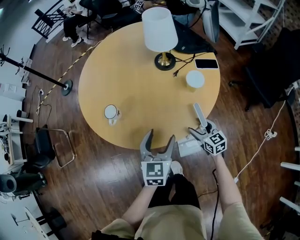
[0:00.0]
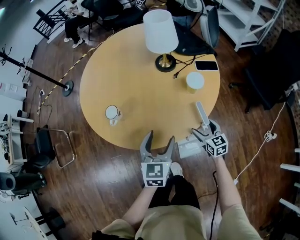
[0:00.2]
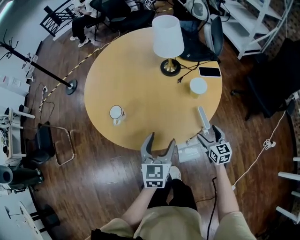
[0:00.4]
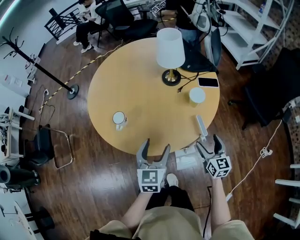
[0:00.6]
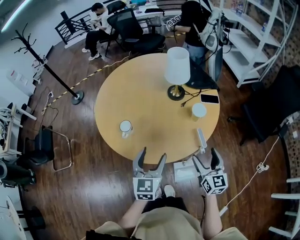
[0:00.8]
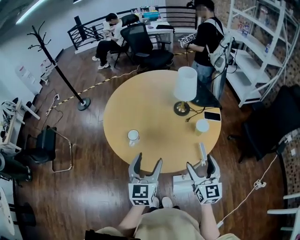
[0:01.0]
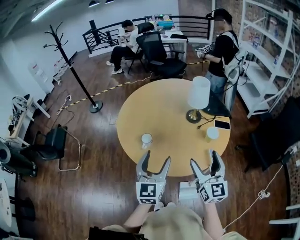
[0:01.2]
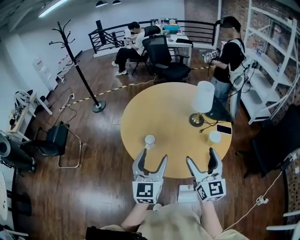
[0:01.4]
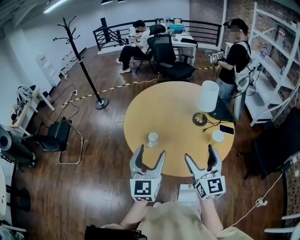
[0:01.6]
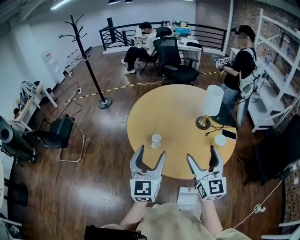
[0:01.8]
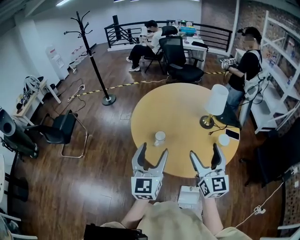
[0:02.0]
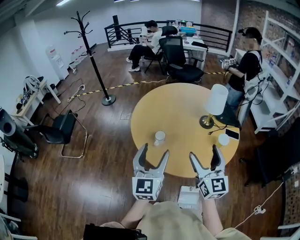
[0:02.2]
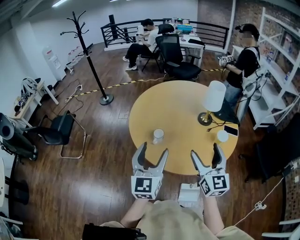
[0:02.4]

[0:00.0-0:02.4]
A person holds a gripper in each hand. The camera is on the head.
0:00.0 to 0:01.2: The right gripper shifts some 35 cm upward, and turns by some 30 degrees. The left gripper shifts about 20 cm upward and to the left, and changes its angle by some 30 degrees.
0:01.2 to 0:02.4: Both grippers travel together to the left, about 10 cm.

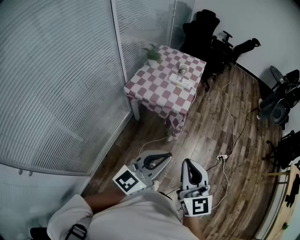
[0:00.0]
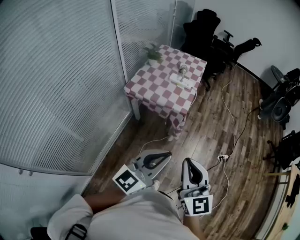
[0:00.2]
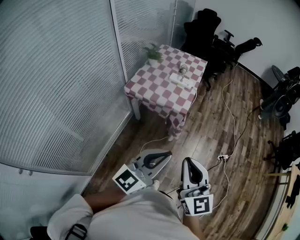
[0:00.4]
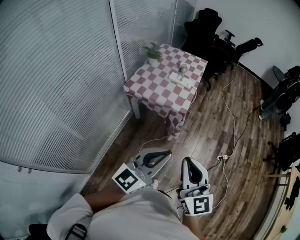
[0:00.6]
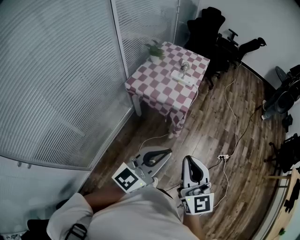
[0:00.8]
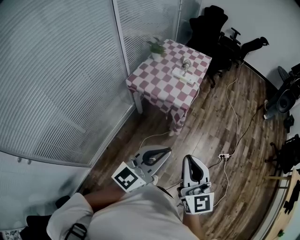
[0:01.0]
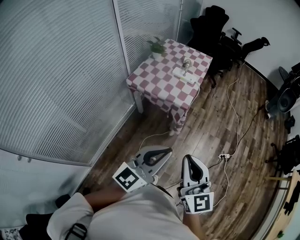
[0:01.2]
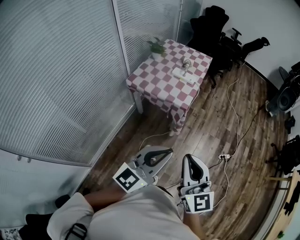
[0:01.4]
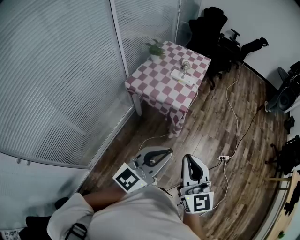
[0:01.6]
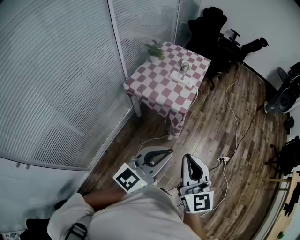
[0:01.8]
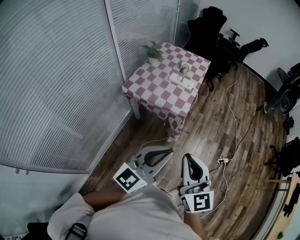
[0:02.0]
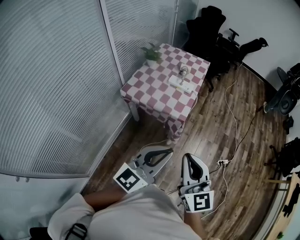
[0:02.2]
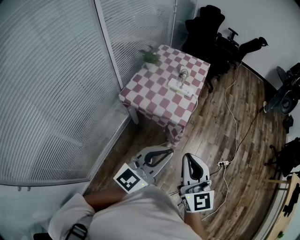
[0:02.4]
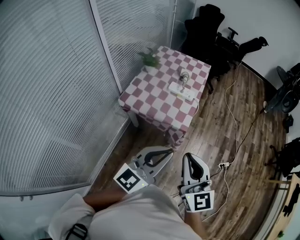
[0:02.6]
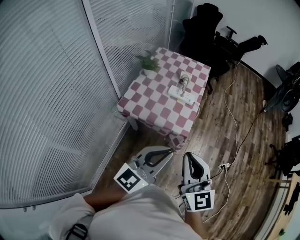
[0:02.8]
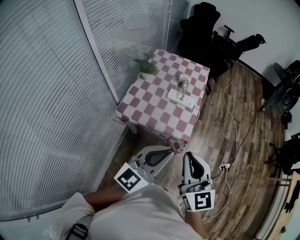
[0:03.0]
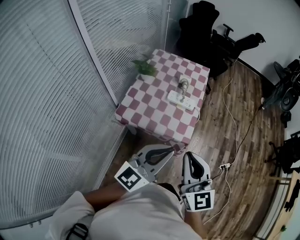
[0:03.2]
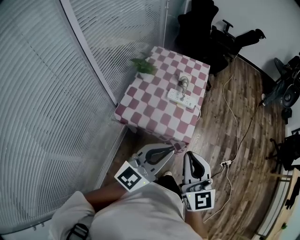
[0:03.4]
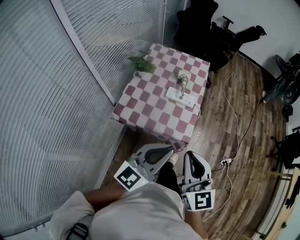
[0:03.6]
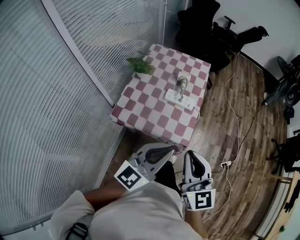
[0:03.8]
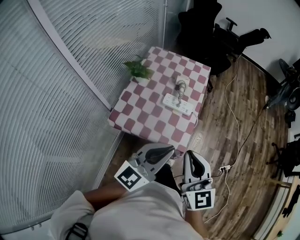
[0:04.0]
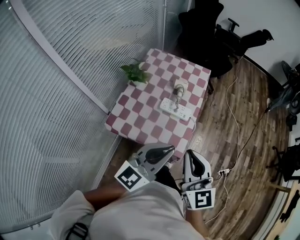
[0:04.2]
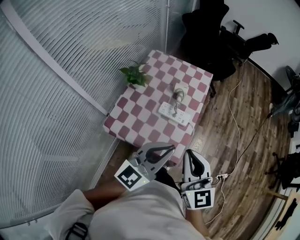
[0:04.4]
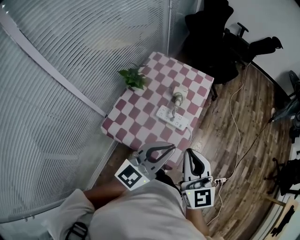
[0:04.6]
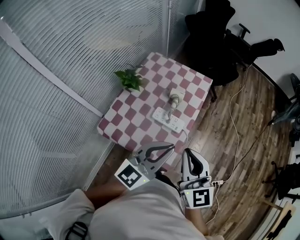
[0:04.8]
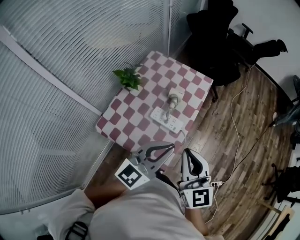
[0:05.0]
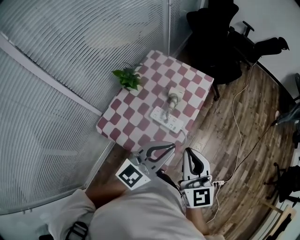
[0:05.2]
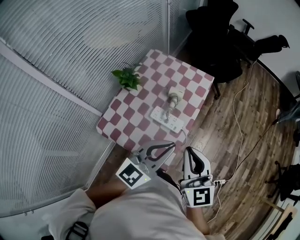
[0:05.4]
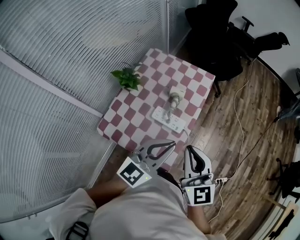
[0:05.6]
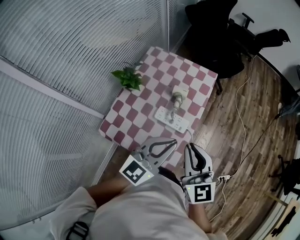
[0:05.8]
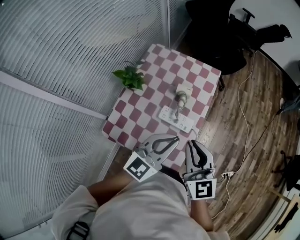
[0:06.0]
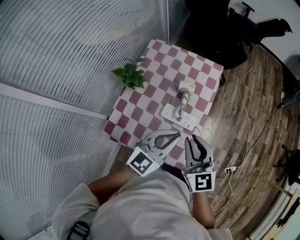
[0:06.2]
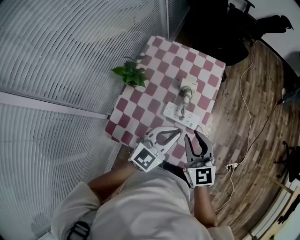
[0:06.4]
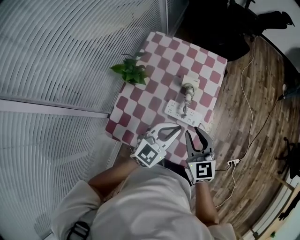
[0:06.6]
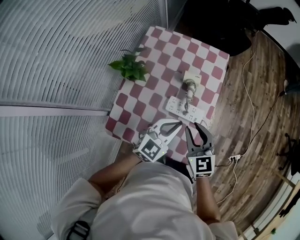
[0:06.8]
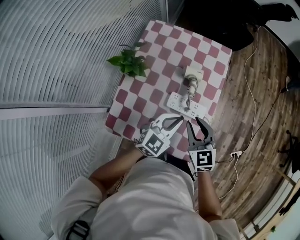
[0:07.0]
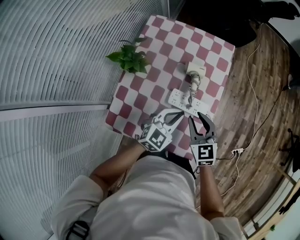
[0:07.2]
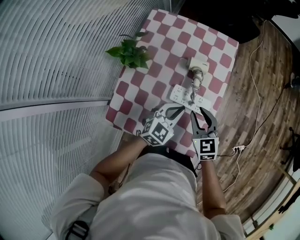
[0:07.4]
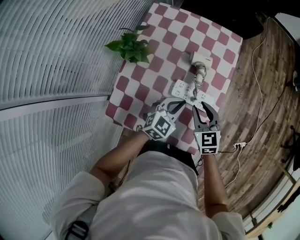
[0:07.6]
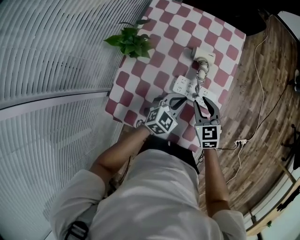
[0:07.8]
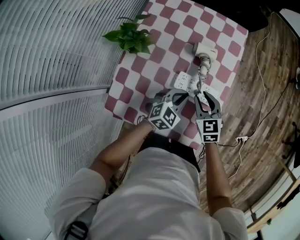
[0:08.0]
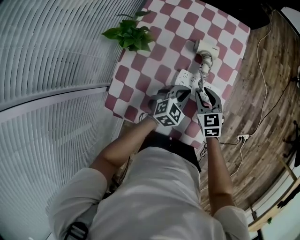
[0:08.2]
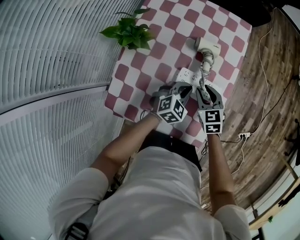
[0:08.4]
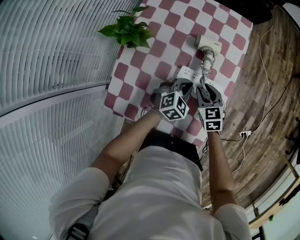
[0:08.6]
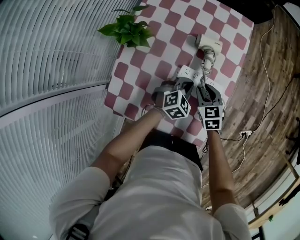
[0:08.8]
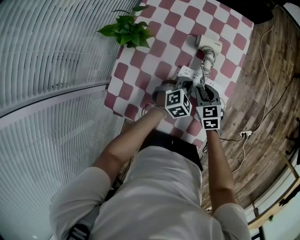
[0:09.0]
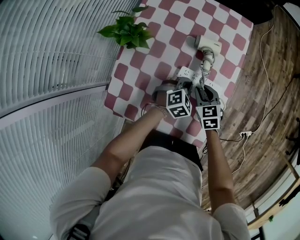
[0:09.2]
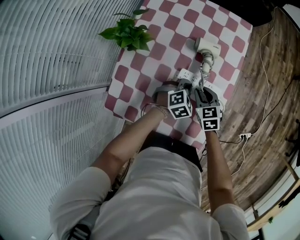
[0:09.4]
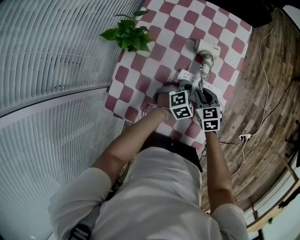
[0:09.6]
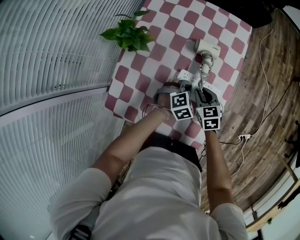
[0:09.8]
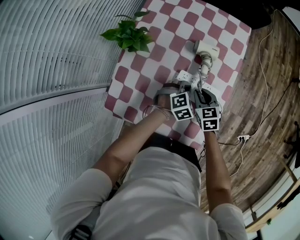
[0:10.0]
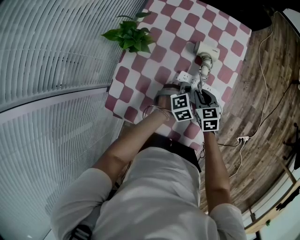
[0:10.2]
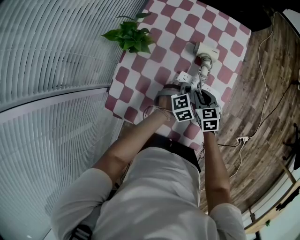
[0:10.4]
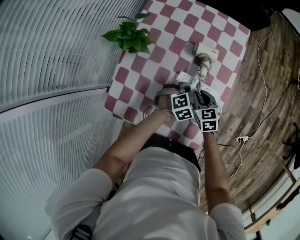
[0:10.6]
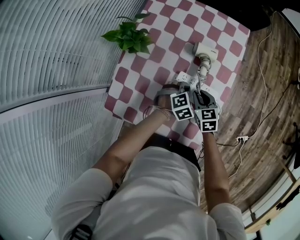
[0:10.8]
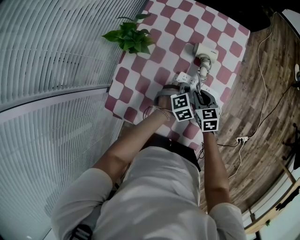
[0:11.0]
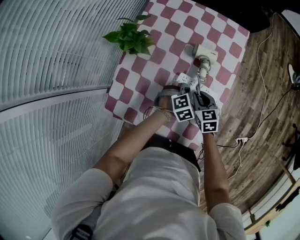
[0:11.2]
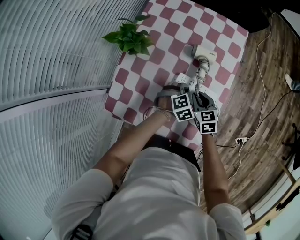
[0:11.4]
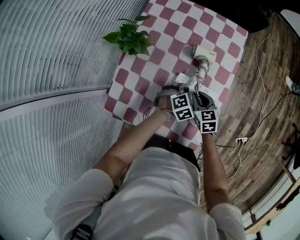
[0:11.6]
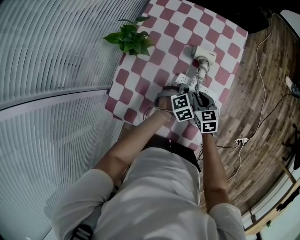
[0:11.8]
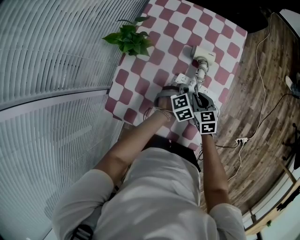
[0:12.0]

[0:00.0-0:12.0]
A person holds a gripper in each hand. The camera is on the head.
0:00.0 to 0:01.6: The right gripper shifts by some 5 cm. The left gripper changes place by approximately 5 cm.
0:01.6 to 0:03.0: Both grippers move forward and to the left, some 30 cm.
0:03.0 to 0:04.4: Both grippers move forward, roughly 25 cm.
0:04.4 to 0:06.0: The right gripper is displaced forward by roughly 15 cm. The left gripper is displaced forward and downward by about 15 cm.
0:06.0 to 0:07.6: Both grippers travel together downward, some 25 cm. The right gripper changes its angle by about 20 degrees, while the left gripper swivels approximately 20 degrees.
0:07.6 to 0:09.0: Both grippers move downward, approximately 10 cm. The left gripper changes its angle by some 20 degrees.
0:09.0 to 0:10.4: There are only small adjustments of the grippers.
0:10.4 to 0:12.0: Both grippers stay about where they are.

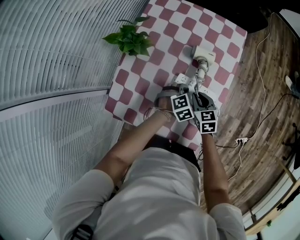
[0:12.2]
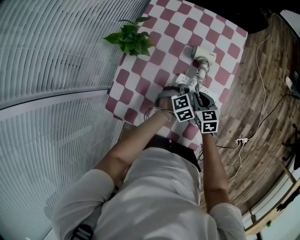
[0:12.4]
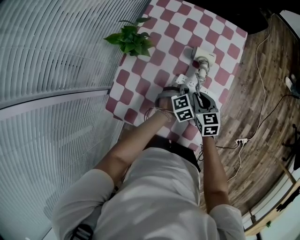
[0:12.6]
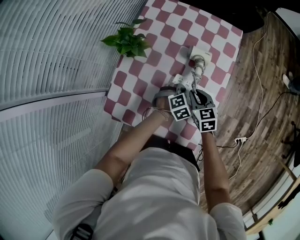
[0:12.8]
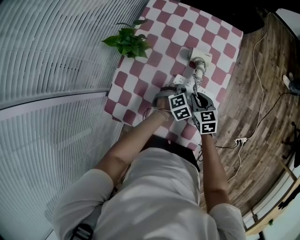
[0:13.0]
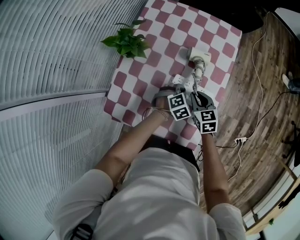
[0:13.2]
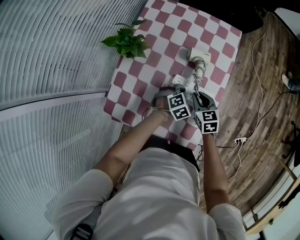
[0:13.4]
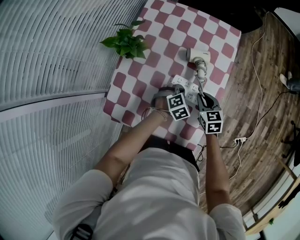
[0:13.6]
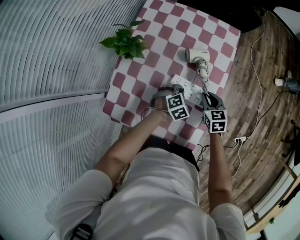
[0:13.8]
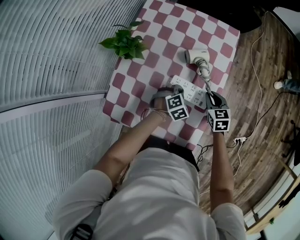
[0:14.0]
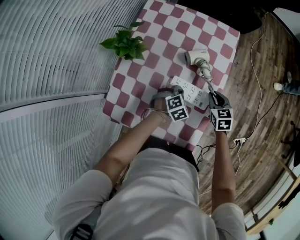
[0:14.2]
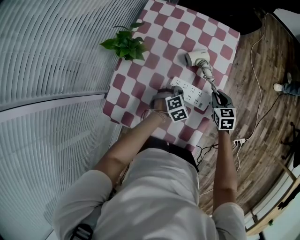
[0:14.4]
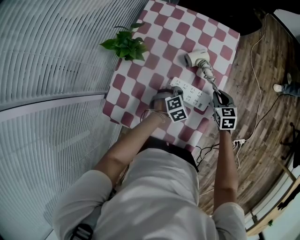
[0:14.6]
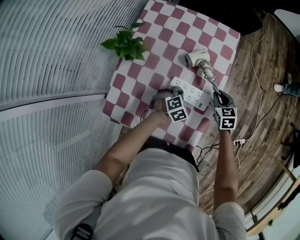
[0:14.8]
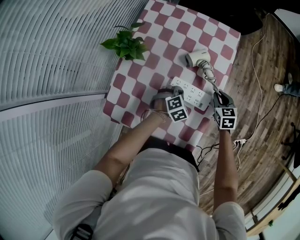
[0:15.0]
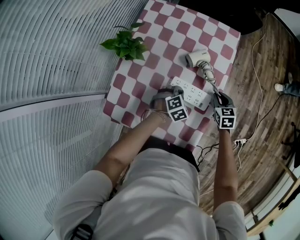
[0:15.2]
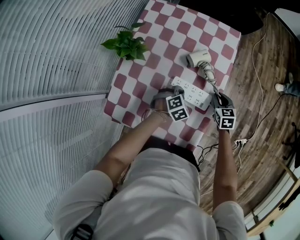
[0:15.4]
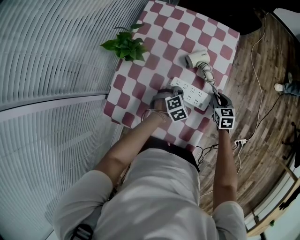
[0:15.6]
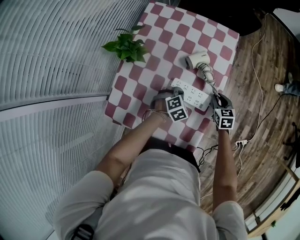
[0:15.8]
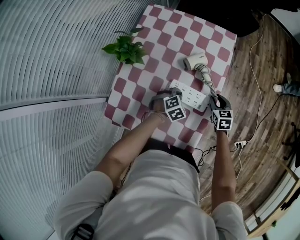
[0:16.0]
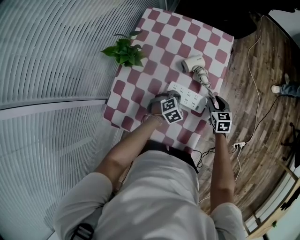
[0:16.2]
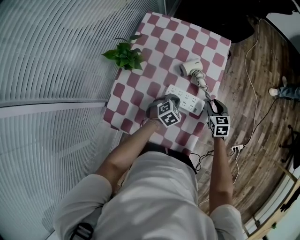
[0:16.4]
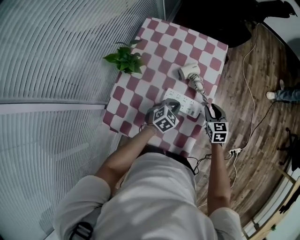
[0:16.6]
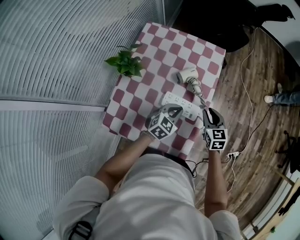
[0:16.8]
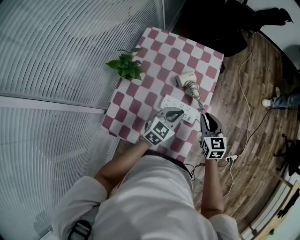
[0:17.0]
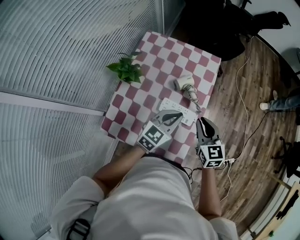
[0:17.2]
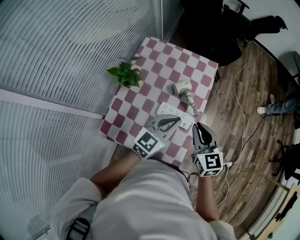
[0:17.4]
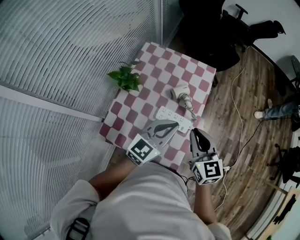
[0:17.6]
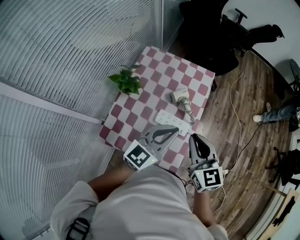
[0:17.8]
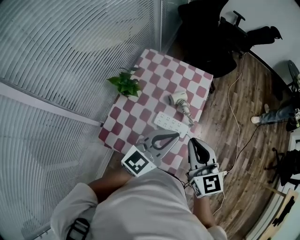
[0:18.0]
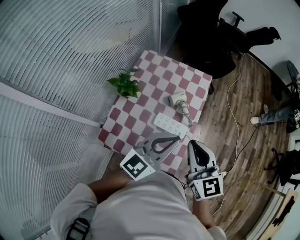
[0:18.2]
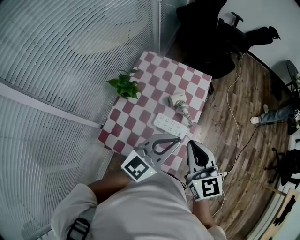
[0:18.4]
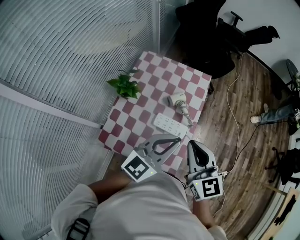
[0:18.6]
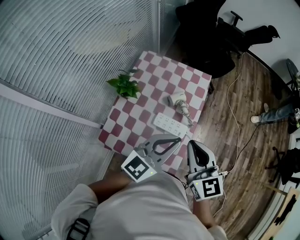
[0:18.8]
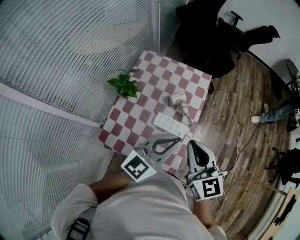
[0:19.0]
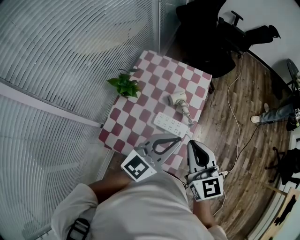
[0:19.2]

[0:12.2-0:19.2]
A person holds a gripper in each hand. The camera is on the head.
0:12.2 to 0:13.6: The grippers stay close to where they were, moving slightly.
0:13.6 to 0:15.0: The right gripper moves to the right, roughly 10 cm.
0:15.0 to 0:16.4: The grippers stay close to where they were, moving slightly.
0:16.4 to 0:17.8: Both grippers move upward, roughly 35 cm. The right gripper turns by some 30 degrees. The left gripper tilts its fingers some 50 degrees upward.
0:17.8 to 0:19.2: The right gripper shifts by about 5 cm. Meanwhile the left gripper ends up approximately 5 cm from where it was.

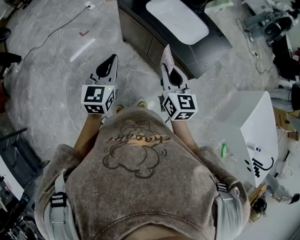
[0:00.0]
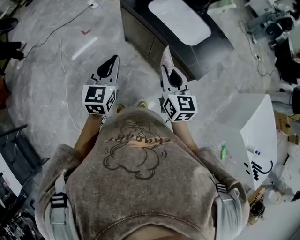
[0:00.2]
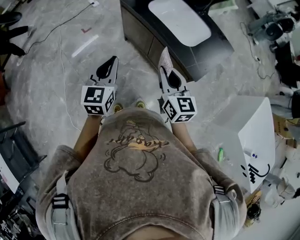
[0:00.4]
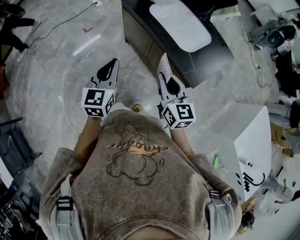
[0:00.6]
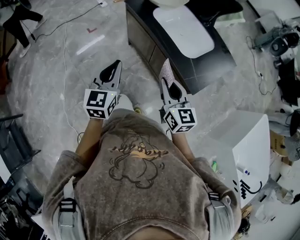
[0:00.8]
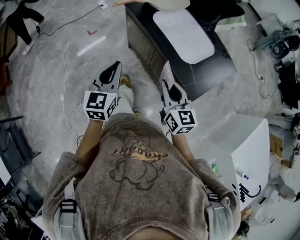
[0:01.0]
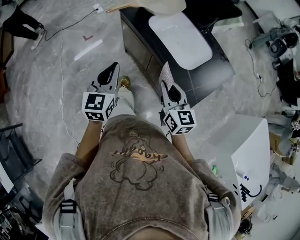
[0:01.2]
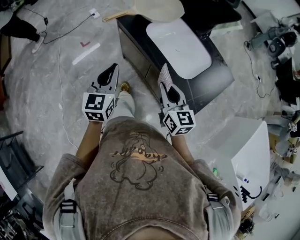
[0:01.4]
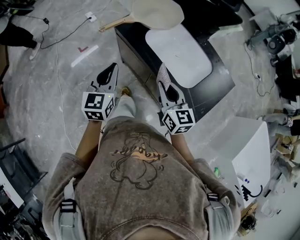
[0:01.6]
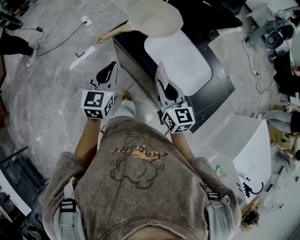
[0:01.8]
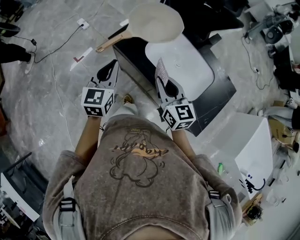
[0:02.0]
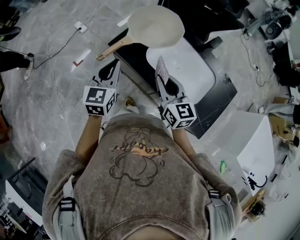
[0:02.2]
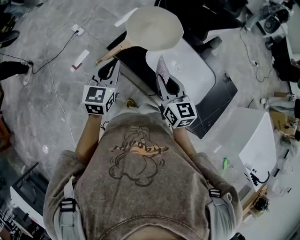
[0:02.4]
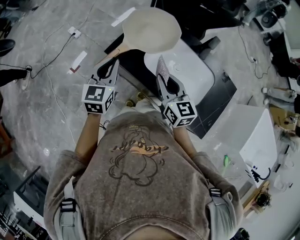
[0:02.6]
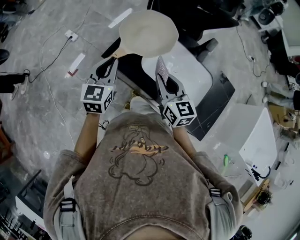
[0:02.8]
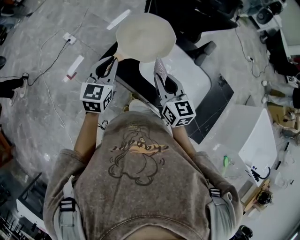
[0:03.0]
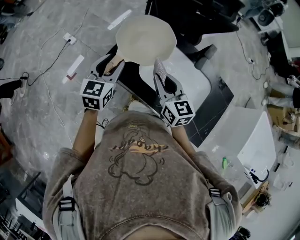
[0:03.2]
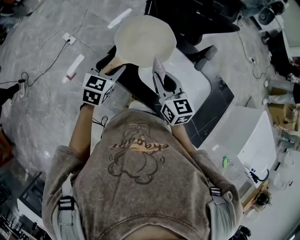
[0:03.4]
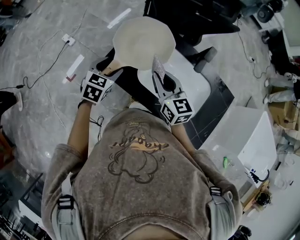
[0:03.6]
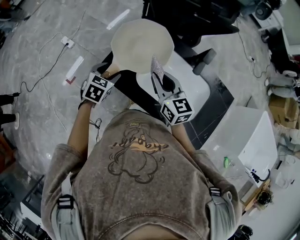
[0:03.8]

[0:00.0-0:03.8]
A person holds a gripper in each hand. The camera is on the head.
0:00.0 to 0:01.2: The right gripper travels forward and to the right by some 10 cm; the left gripper is displaced forward by some 10 cm.
0:01.2 to 0:02.6: The grippers both shift forward by about 35 cm.
0:02.6 to 0:03.8: The left gripper shifts roughly 15 cm downward and forward, tips its fingers downward by roughly 30 degrees, and opens its fingers. The right gripper shifts about 10 cm forward.
